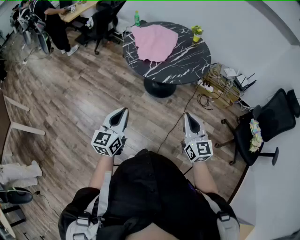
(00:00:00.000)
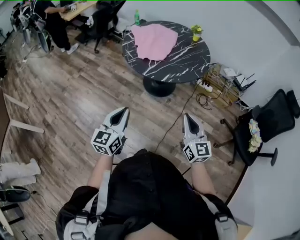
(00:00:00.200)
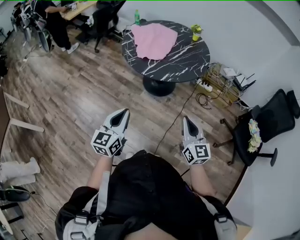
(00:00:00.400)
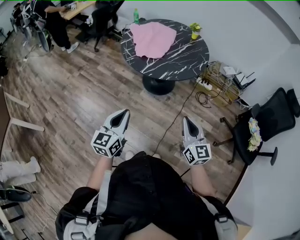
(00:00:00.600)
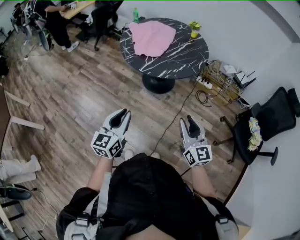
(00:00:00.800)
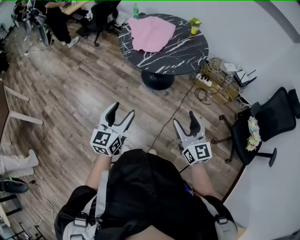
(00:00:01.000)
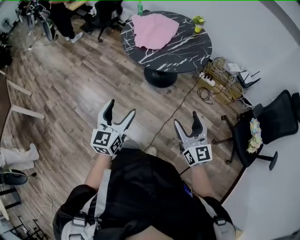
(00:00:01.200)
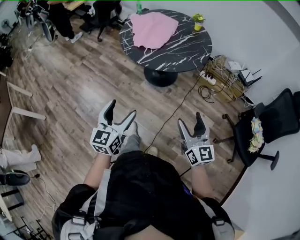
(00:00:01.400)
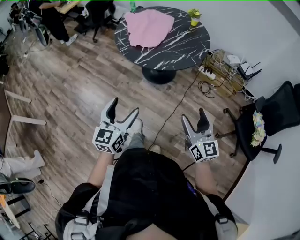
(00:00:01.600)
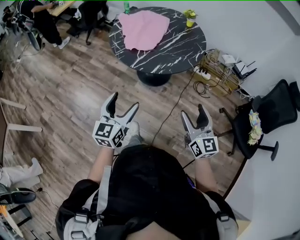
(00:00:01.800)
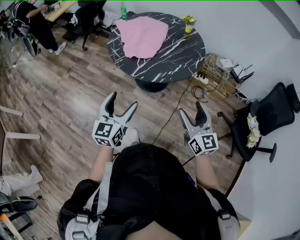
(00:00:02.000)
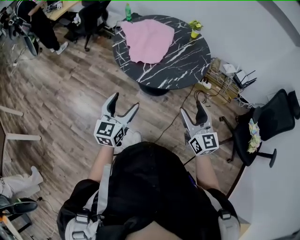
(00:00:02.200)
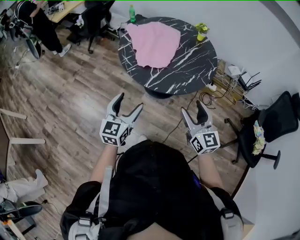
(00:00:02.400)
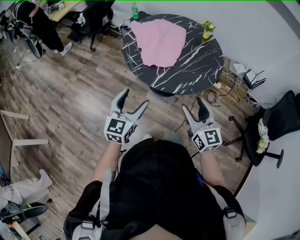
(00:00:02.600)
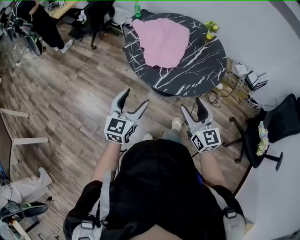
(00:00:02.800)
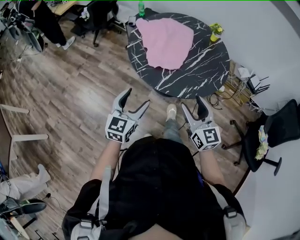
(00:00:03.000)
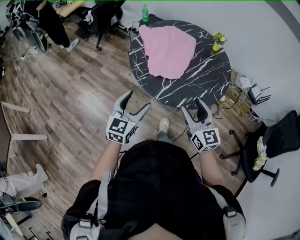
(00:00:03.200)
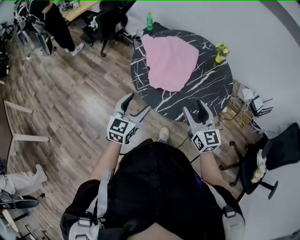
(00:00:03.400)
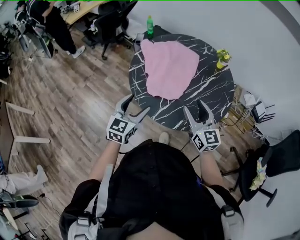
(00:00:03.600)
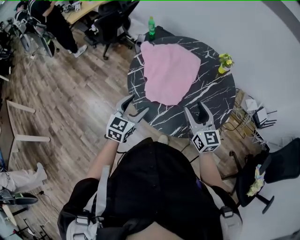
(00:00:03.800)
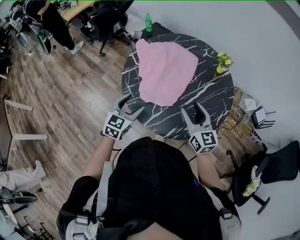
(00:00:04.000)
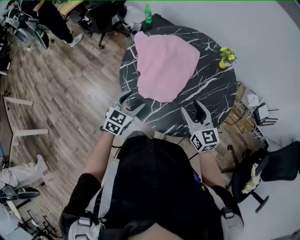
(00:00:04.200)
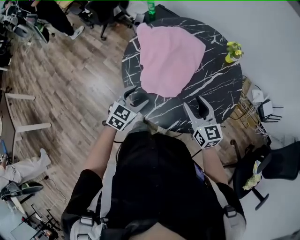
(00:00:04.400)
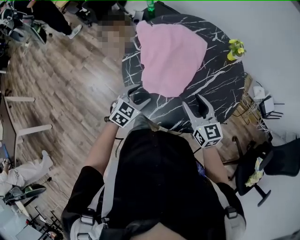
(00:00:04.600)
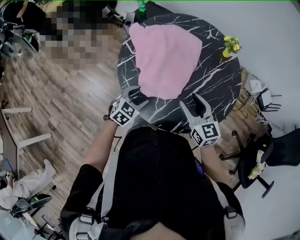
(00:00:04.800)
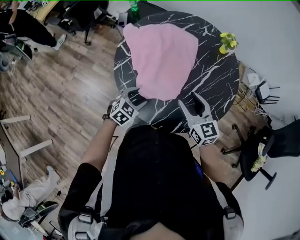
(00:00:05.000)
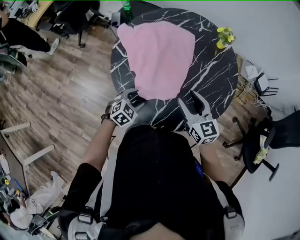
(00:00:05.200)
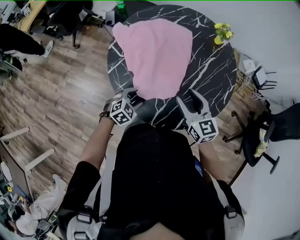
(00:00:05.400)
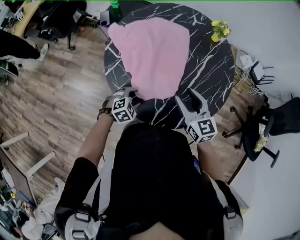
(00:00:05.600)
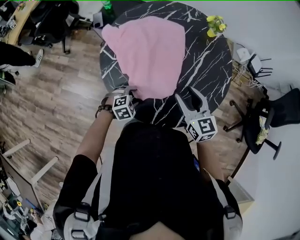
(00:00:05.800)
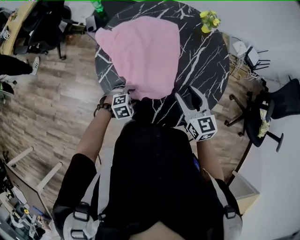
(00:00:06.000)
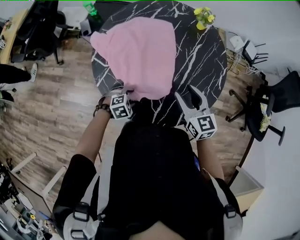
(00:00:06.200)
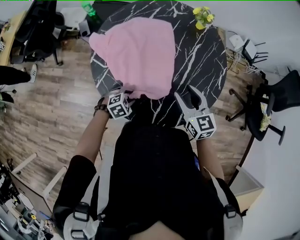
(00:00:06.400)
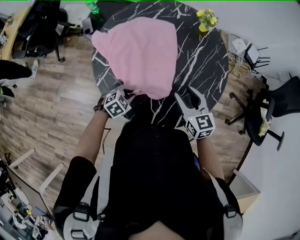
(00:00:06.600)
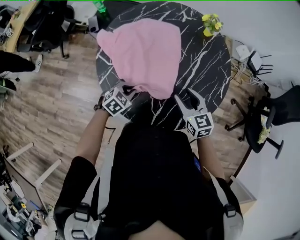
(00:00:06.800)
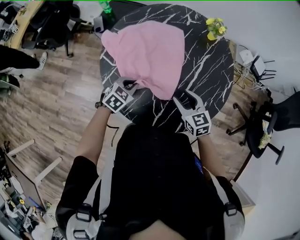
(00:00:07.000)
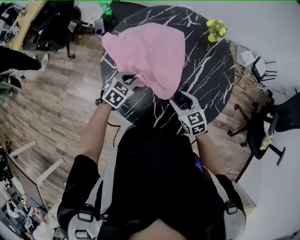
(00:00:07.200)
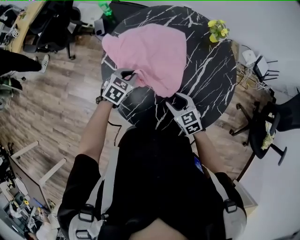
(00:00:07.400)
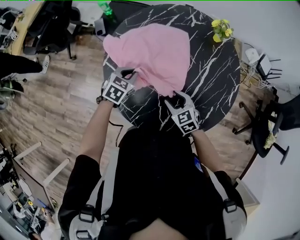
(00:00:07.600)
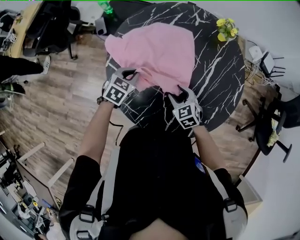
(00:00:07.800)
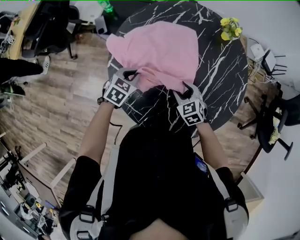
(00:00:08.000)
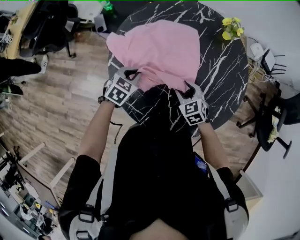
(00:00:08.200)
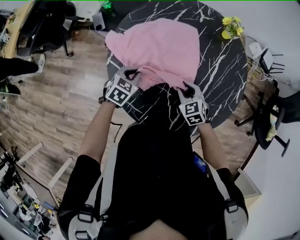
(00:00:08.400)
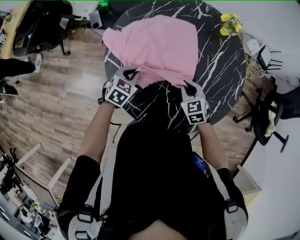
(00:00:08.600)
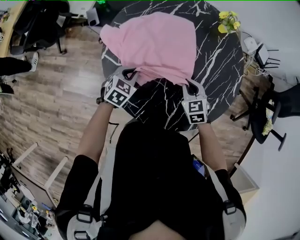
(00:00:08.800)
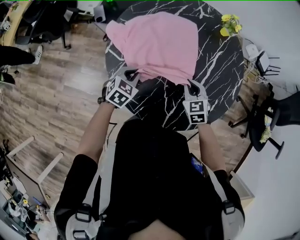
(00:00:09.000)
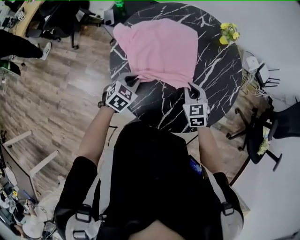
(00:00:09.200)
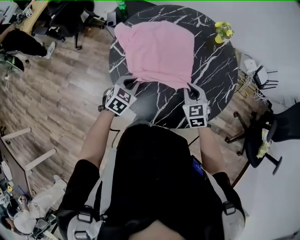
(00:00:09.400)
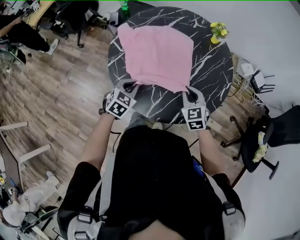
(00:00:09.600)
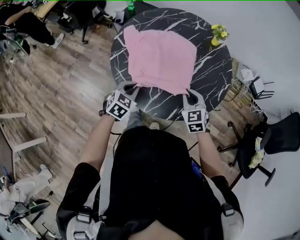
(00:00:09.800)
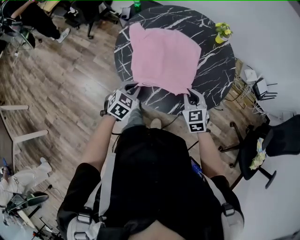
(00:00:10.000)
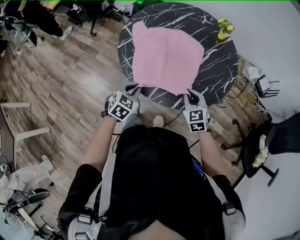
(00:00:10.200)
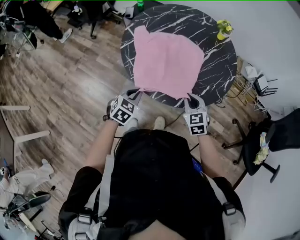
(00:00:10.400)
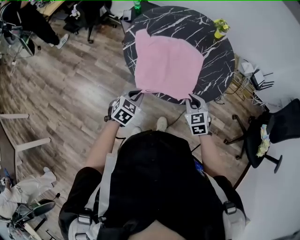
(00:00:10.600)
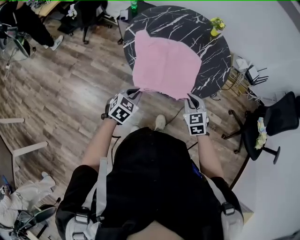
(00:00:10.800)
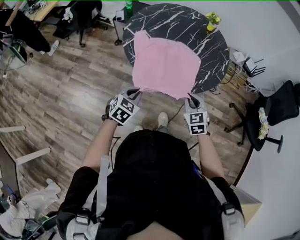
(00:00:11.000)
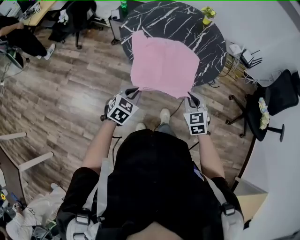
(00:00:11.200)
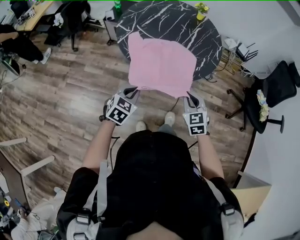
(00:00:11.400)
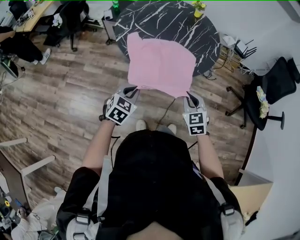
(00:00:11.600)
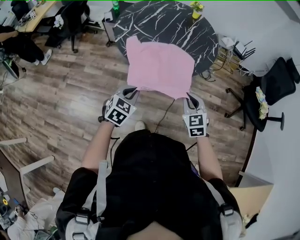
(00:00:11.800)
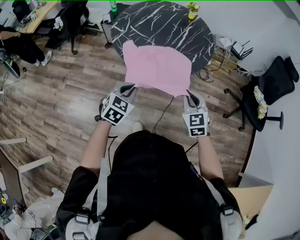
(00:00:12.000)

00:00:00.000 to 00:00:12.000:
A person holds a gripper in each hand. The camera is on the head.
00:00:00.000 to 00:00:01.600: Both grippers travel together to the right, roughly 10 cm. The left gripper opens. Meanwhile the right gripper opens up.
00:00:01.600 to 00:00:03.000: The grippers both shift forward and to the left by approximately 30 cm.
00:00:03.000 to 00:00:04.400: The right gripper is displaced forward by some 25 cm. Meanwhile the left gripper heads forward and downward, covering roughly 25 cm, and rotates approximately 20 degrees.
00:00:04.400 to 00:00:06.000: The right gripper moves about 5 cm, and turns by about 20 degrees. Meanwhile the left gripper is displaced downward by some 15 cm, and tilts its fingers roughly 30 degrees downward.
00:00:06.000 to 00:00:07.600: The right gripper is displaced downward by about 15 cm, and swivels some 30 degrees; the left gripper ends up some 20 cm from where it was, changes its angle by some 40 degrees, and closes its fingers.
00:00:07.600 to 00:00:09.000: The right gripper moves about 5 cm, and closes up. Meanwhile the left gripper shifts about 5 cm backward.
00:00:09.000 to 00:00:10.400: The grippers both shift backward by about 25 cm.
00:00:10.400 to 00:00:12.000: The grippers both shift backward and upward by some 20 cm.

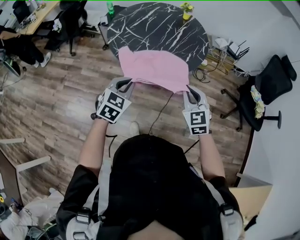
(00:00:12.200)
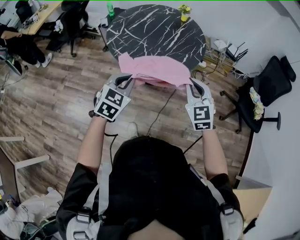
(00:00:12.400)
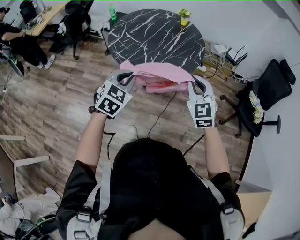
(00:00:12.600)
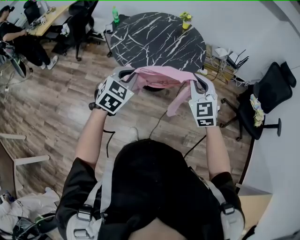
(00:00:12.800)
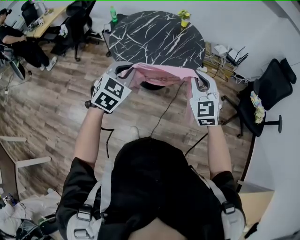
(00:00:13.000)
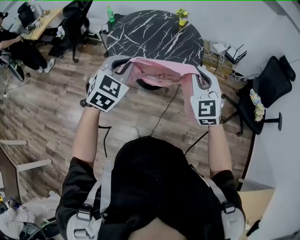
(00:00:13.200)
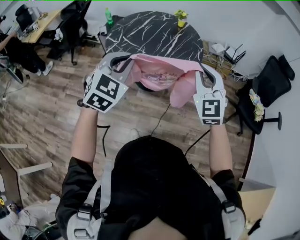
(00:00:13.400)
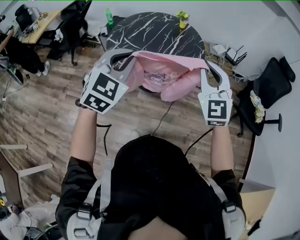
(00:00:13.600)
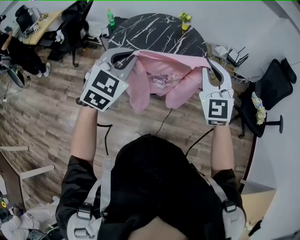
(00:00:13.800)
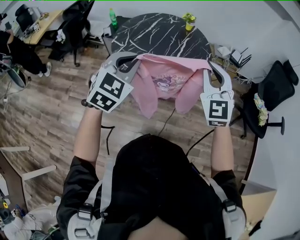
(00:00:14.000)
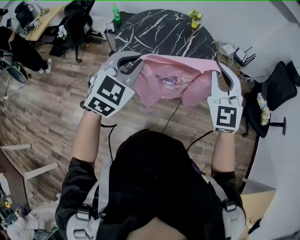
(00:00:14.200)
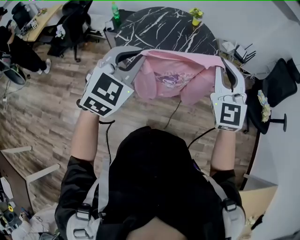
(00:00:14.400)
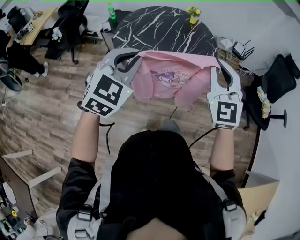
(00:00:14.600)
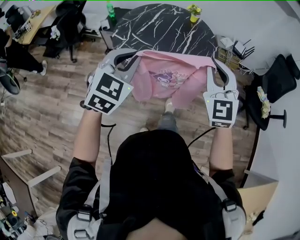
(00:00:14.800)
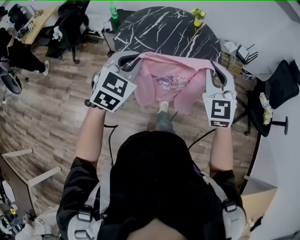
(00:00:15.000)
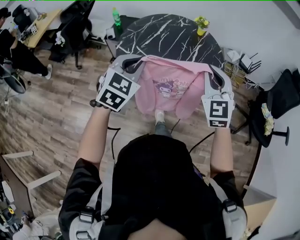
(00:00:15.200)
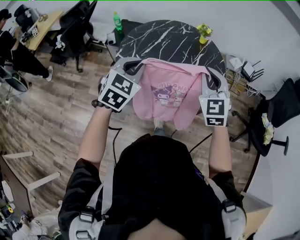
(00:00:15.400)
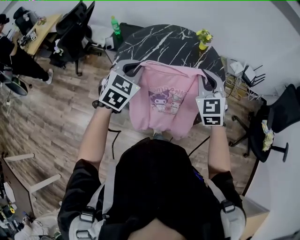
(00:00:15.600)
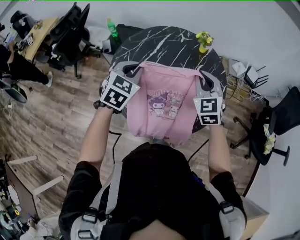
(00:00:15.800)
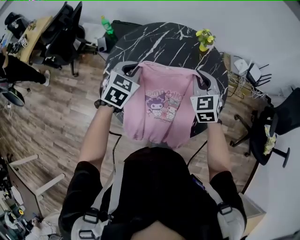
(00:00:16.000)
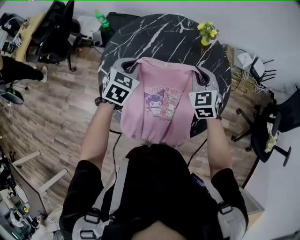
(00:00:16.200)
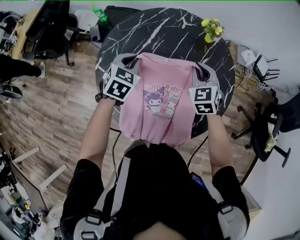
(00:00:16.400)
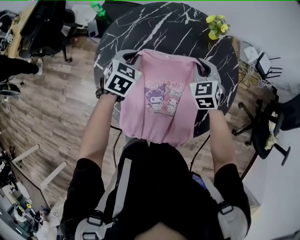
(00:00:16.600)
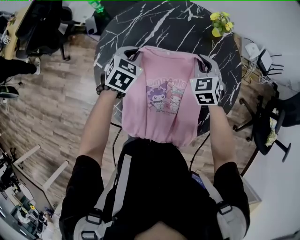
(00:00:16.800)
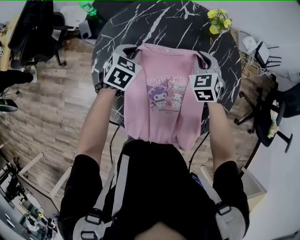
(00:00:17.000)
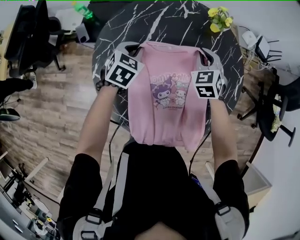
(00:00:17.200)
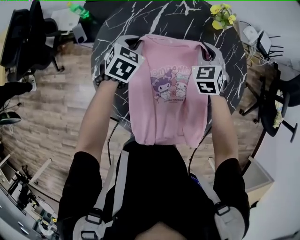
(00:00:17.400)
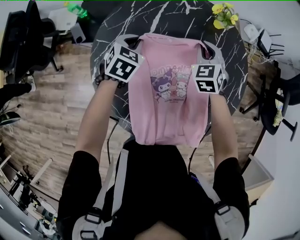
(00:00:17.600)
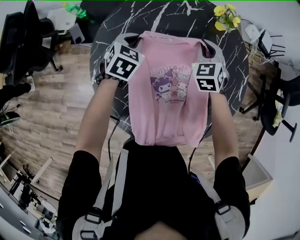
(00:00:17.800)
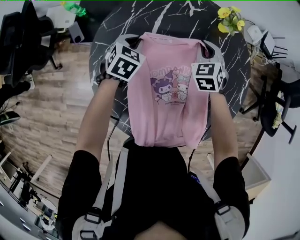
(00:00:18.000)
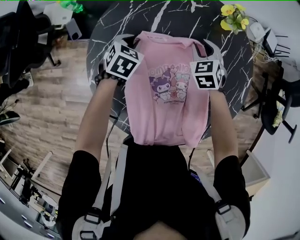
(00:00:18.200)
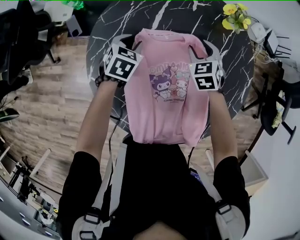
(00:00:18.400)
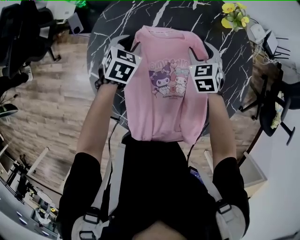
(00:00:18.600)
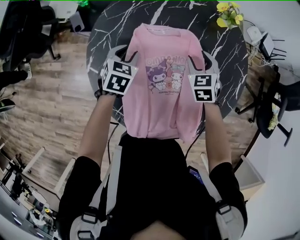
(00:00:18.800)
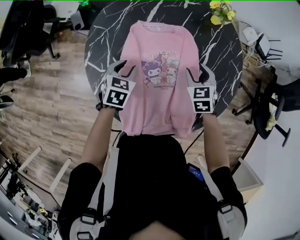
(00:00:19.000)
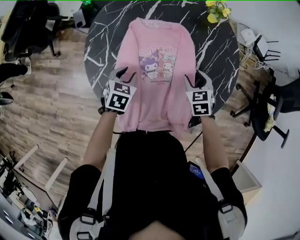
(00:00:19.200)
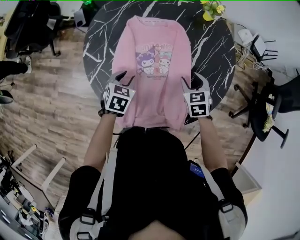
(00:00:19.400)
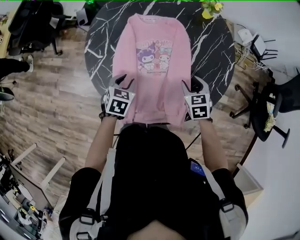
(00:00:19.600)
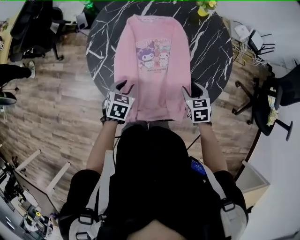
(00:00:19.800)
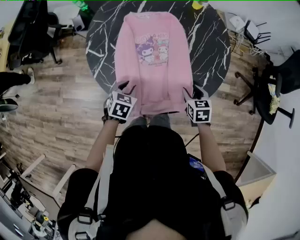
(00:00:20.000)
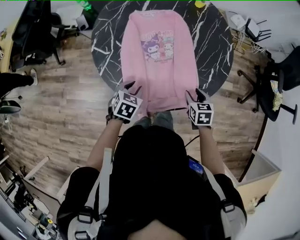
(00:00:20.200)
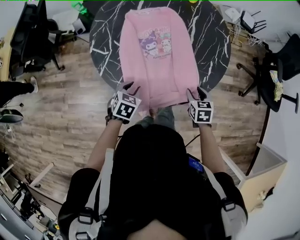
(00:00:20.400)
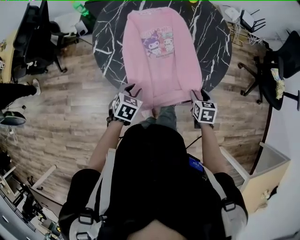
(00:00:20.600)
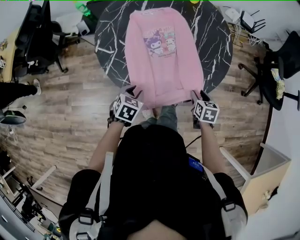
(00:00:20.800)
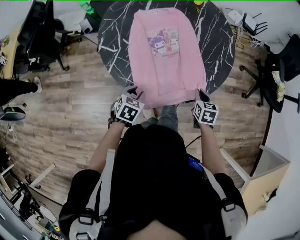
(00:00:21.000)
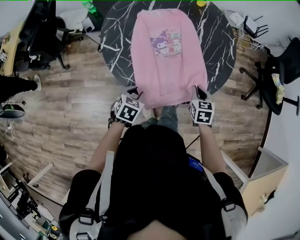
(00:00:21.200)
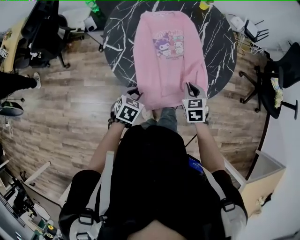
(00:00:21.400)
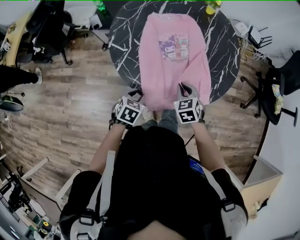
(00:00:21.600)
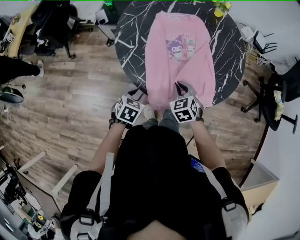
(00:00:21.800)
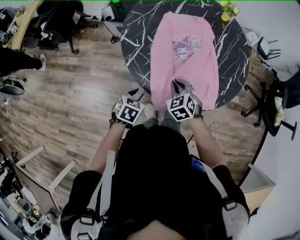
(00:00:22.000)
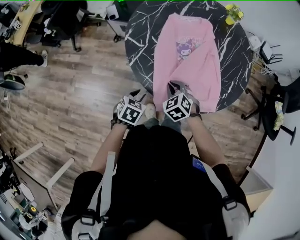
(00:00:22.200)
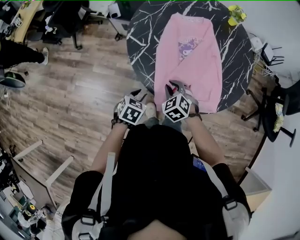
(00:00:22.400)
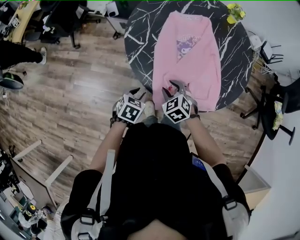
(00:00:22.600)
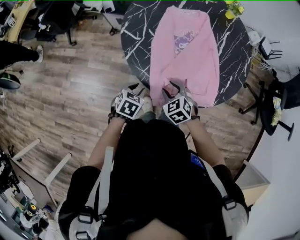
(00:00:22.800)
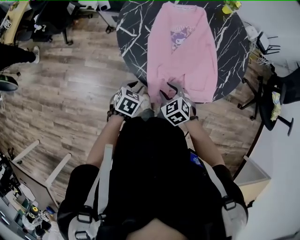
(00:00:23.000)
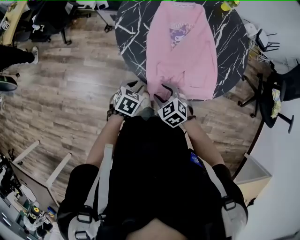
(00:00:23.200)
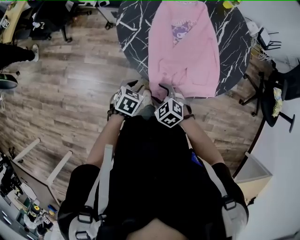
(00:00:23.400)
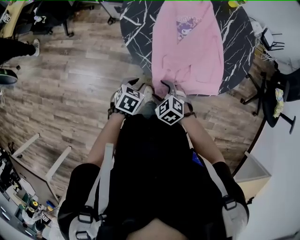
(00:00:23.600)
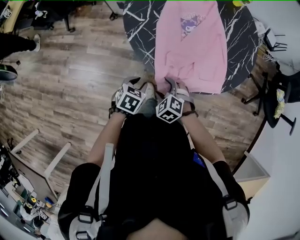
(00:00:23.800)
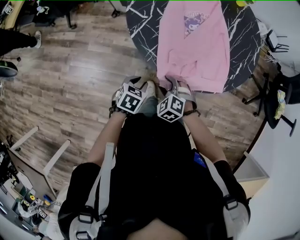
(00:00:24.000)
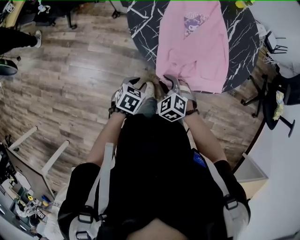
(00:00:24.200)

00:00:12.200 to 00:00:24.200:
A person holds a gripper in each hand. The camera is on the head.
00:00:12.200 to 00:00:13.800: Both grippers move upward, approximately 20 cm. The right gripper rotates some 30 degrees; the left gripper rotates some 20 degrees.
00:00:13.800 to 00:00:15.200: The right gripper travels forward, to the left and downward by roughly 20 cm. The left gripper moves forward, downward and to the left, approximately 20 cm.
00:00:15.200 to 00:00:16.600: Both grippers move forward and downward, about 40 cm. The left gripper swivels approximately 20 degrees. The right gripper swivels approximately 30 degrees.
00:00:16.600 to 00:00:18.200: The left gripper heads downward, forward and to the left, covering approximately 20 cm. The right gripper shifts roughly 15 cm downward and forward.
00:00:18.200 to 00:00:19.800: The grippers both shift backward by approximately 30 cm. The right gripper turns by some 20 degrees.
00:00:19.800 to 00:00:21.200: Both grippers move backward, approximately 10 cm. The right gripper rotates about 20 degrees, and closes up.
00:00:21.200 to 00:00:22.600: The left gripper moves to the left, some 5 cm. Meanwhile the right gripper goes about 25 cm to the left, rolls counterclockwise, seen from behind, by roughly 40 degrees, and opens up.
00:00:22.600 to 00:00:24.200: The two grippers go about 10 cm backward. The right gripper opens, then closes again.
